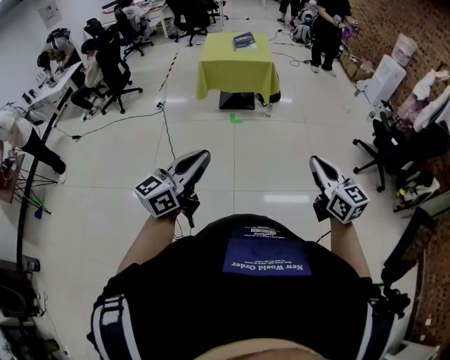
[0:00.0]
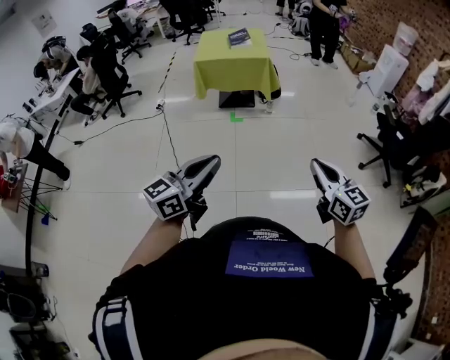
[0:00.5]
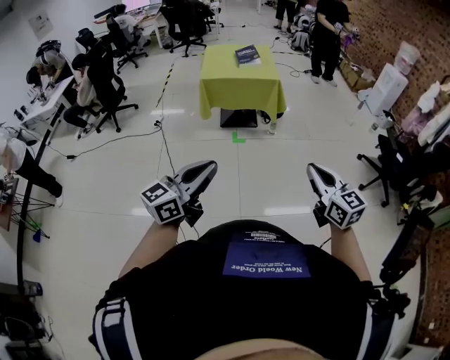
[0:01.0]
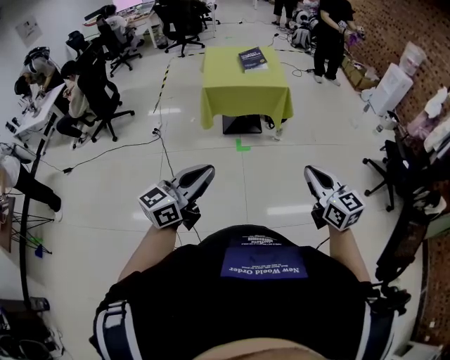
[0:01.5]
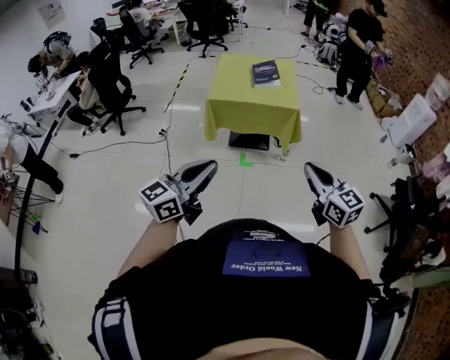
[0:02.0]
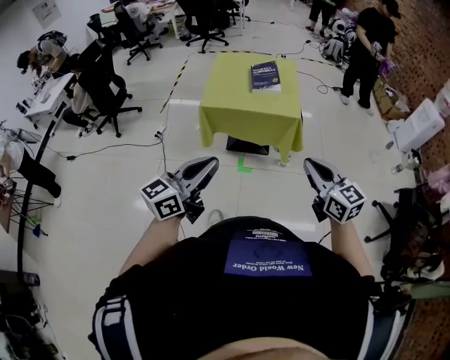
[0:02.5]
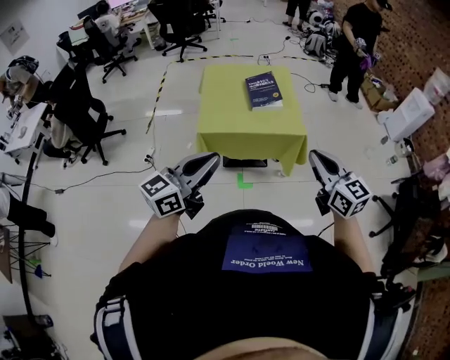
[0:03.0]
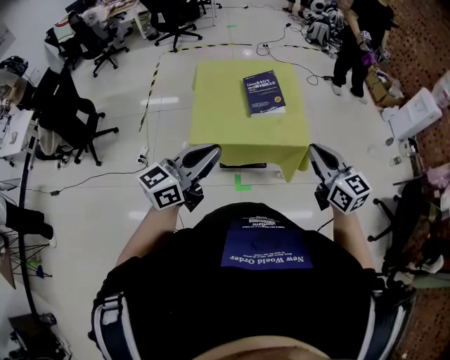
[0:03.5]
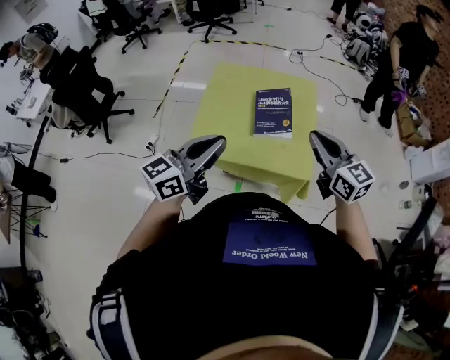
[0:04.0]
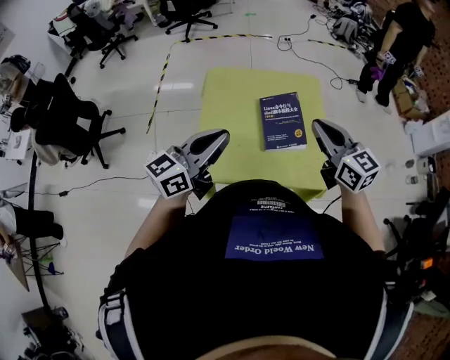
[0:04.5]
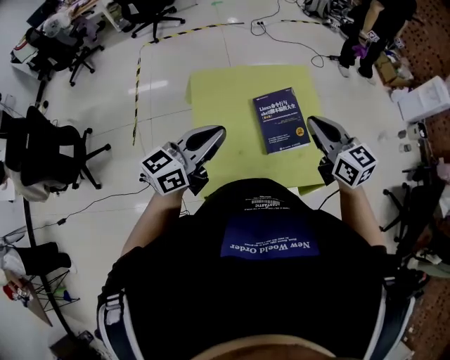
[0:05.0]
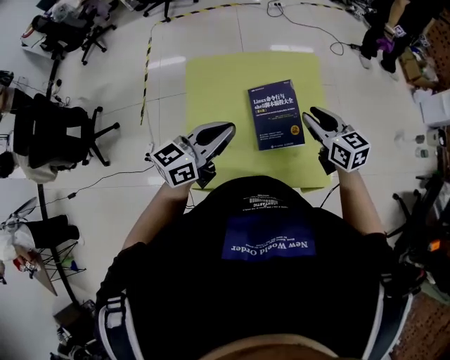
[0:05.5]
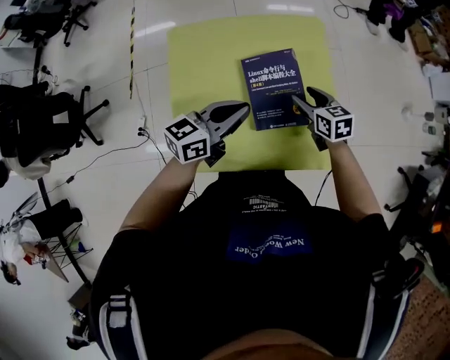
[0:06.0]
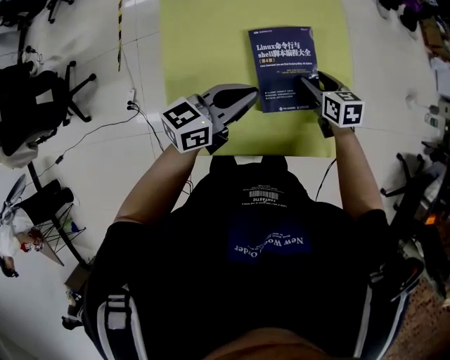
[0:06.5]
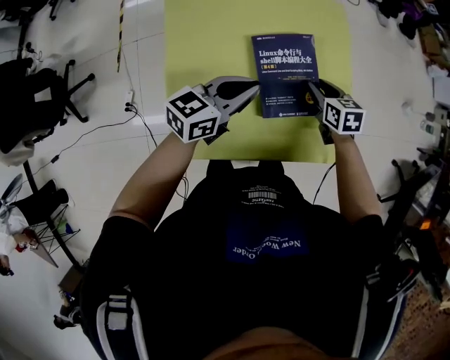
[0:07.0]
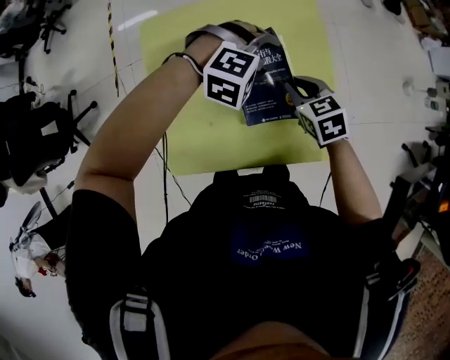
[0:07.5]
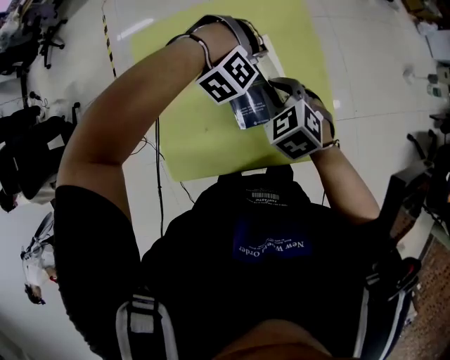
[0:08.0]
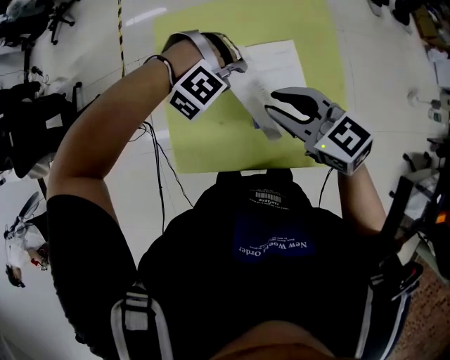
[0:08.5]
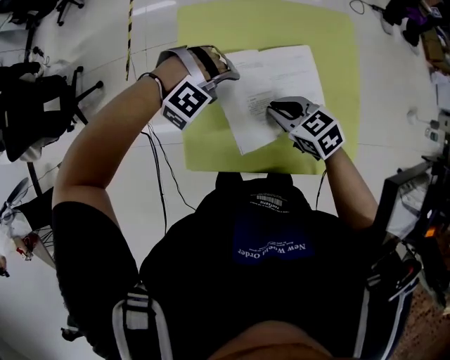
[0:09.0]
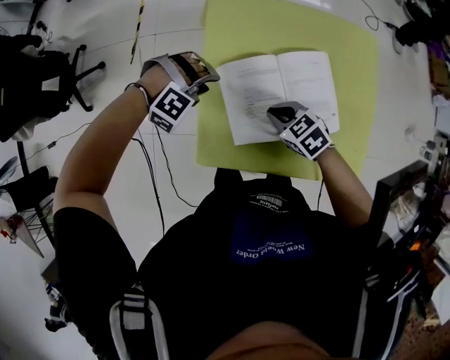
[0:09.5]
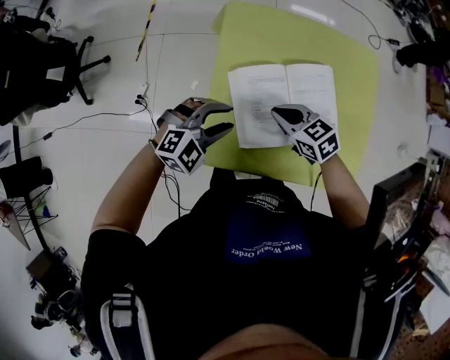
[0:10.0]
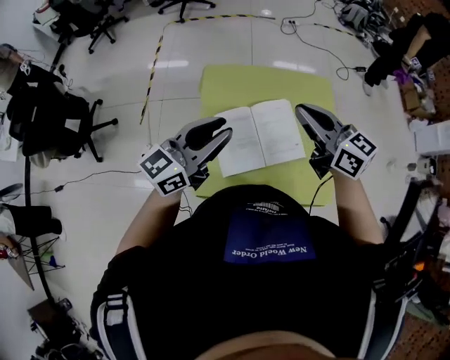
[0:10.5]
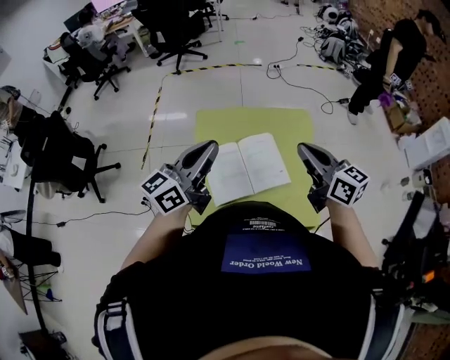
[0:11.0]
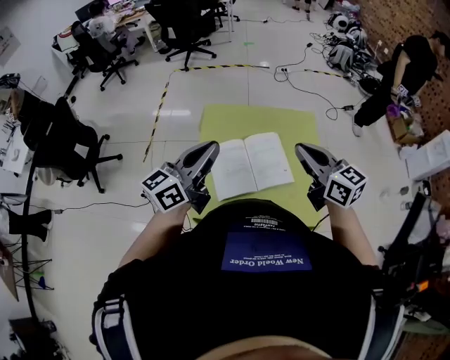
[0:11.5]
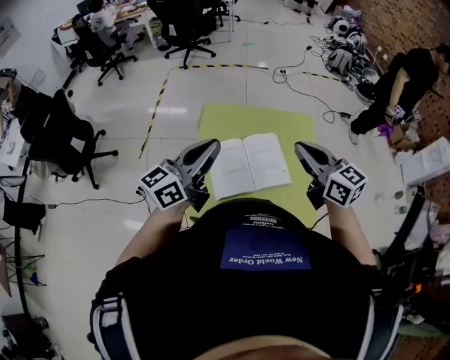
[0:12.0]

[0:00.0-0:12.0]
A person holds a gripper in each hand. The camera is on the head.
0:00.0 to 0:02.0: The pair of grippers is taken forward, approximately 50 cm.
0:02.0 to 0:04.0: The pair of grippers is taken forward, roughly 60 cm.
0:04.0 to 0:06.0: The right gripper heads downward and forward, covering roughly 40 cm, points its fingers about 30 degrees further downward, and opens up, while the left gripper moves forward and downward, approximately 35 cm, and changes its angle by about 30 degrees.
0:06.0 to 0:08.0: The right gripper changes place by approximately 5 cm, swivels roughly 30 degrees, and closes its fingers. The left gripper moves downward, some 15 cm, rolls clockwise, seen from behind, by approximately 110 degrees, and opens up.
0:08.0 to 0:10.0: The right gripper goes upward and returns, roughly 10 cm each way, and turns by roughly 30 degrees. The left gripper changes place by some 30 cm, twists approximately 80 degrees counterclockwise, seen from behind, and closes.
0:10.0 to 0:12.0: The left gripper moves upward, some 30 cm, points its fingers some 50 degrees further upward, and closes. Meanwhile the right gripper goes some 35 cm upward and to the right, and points its fingers some 30 degrees further upward.

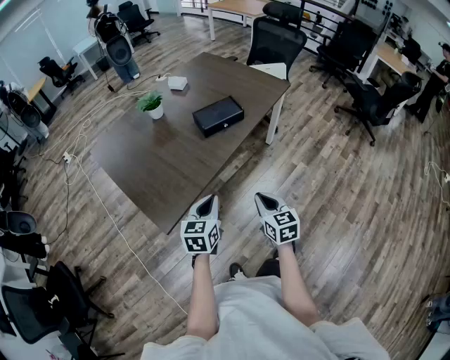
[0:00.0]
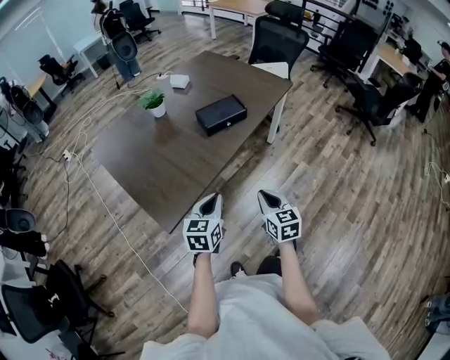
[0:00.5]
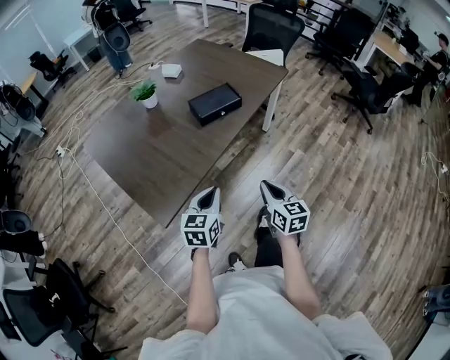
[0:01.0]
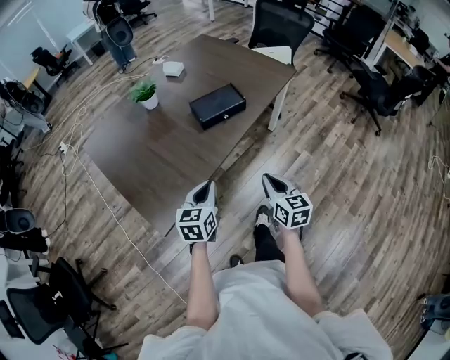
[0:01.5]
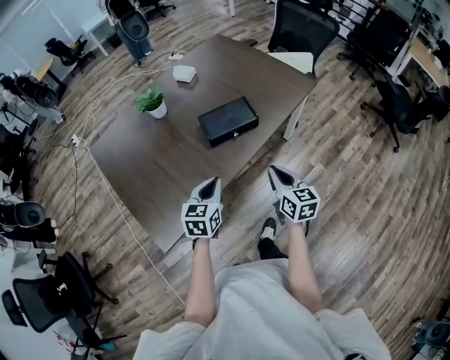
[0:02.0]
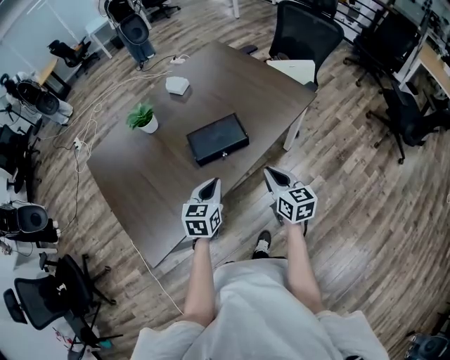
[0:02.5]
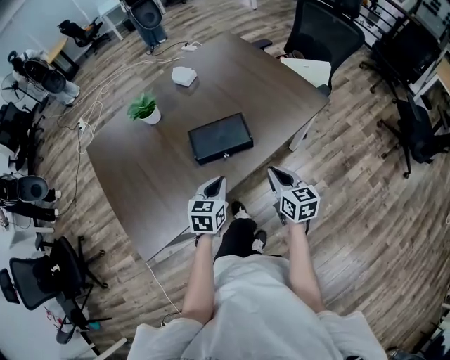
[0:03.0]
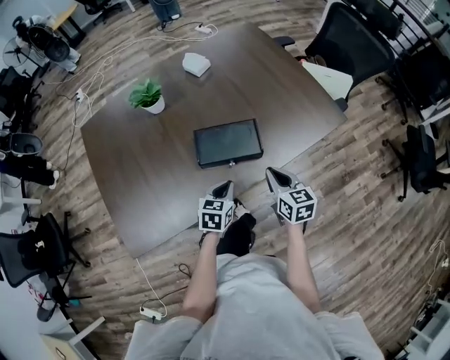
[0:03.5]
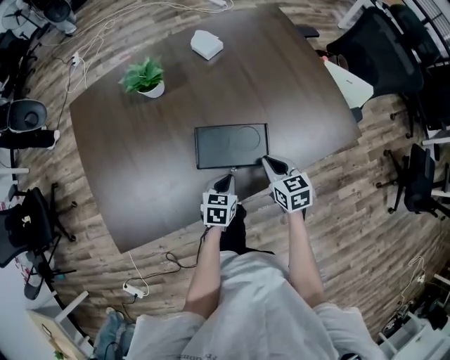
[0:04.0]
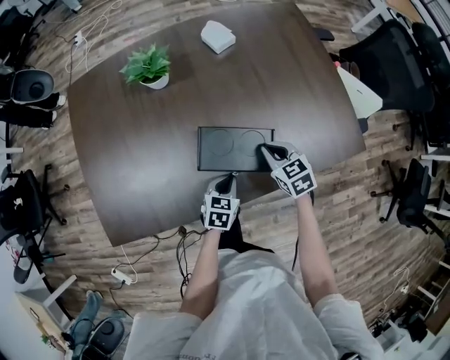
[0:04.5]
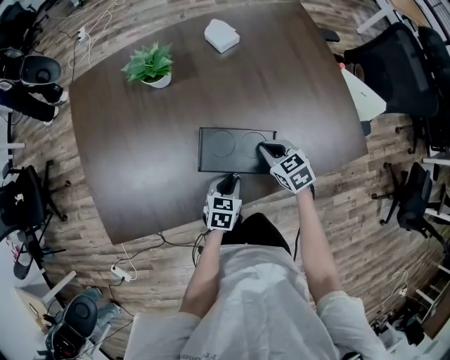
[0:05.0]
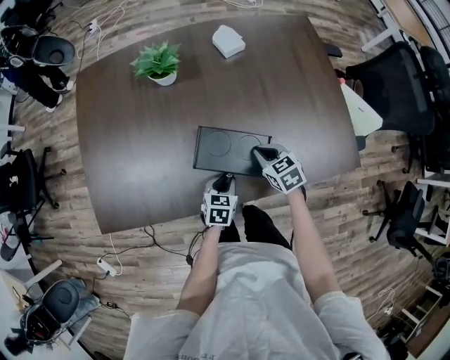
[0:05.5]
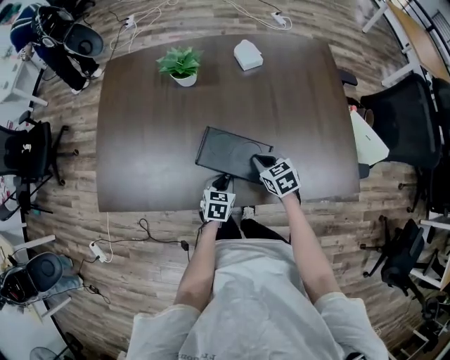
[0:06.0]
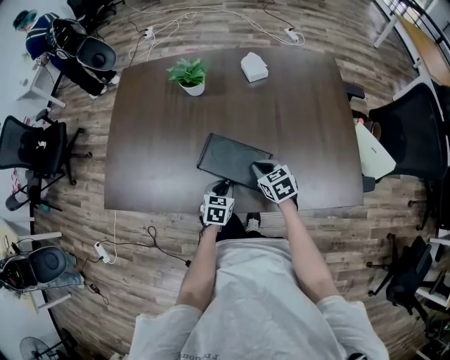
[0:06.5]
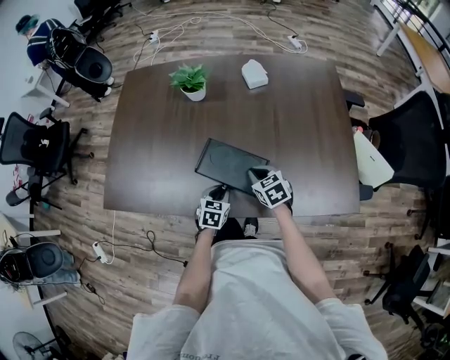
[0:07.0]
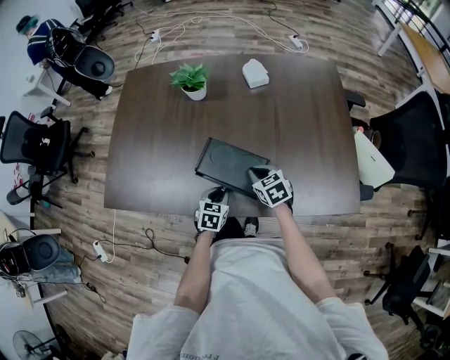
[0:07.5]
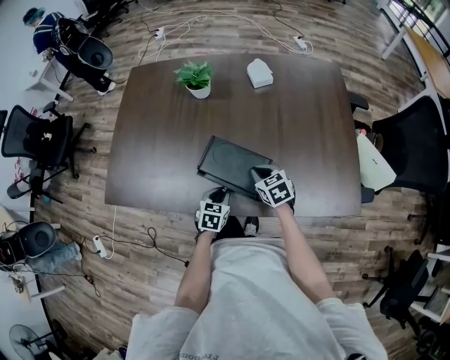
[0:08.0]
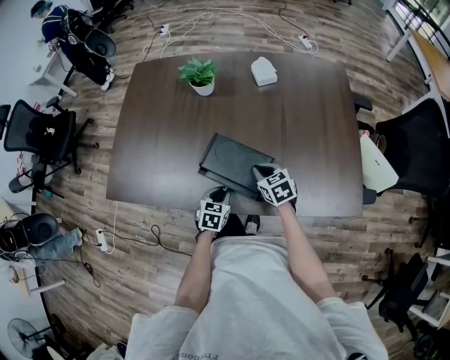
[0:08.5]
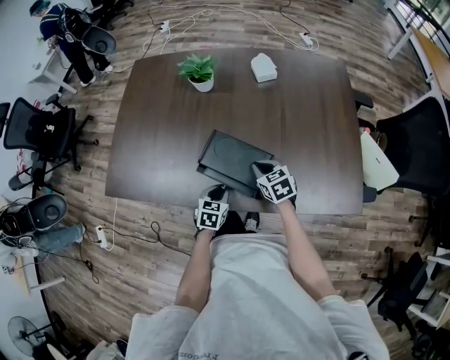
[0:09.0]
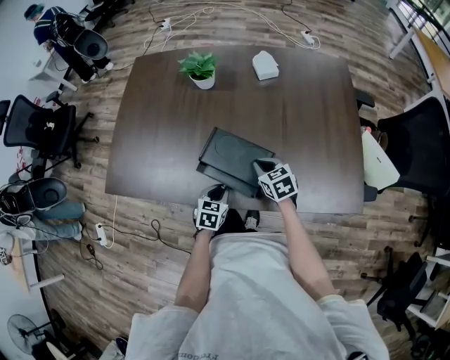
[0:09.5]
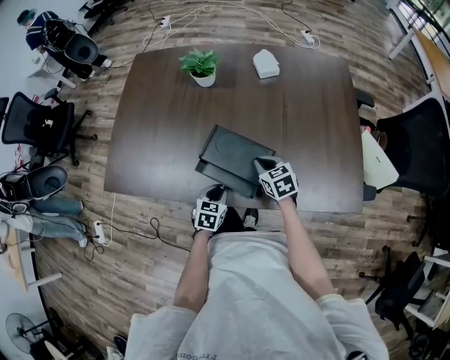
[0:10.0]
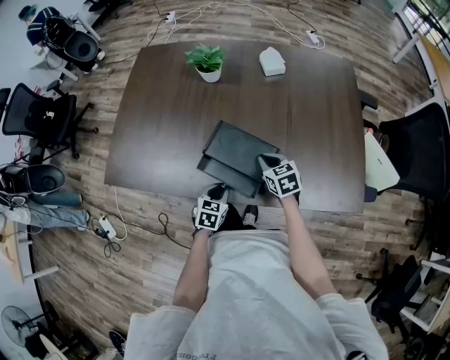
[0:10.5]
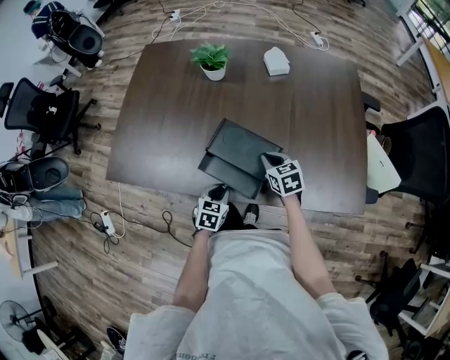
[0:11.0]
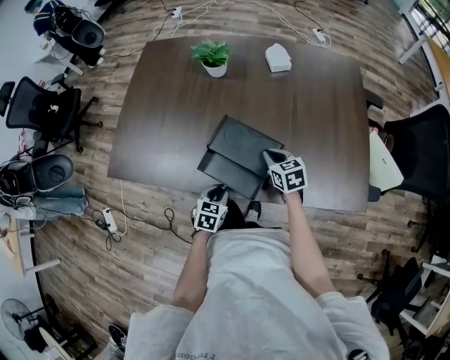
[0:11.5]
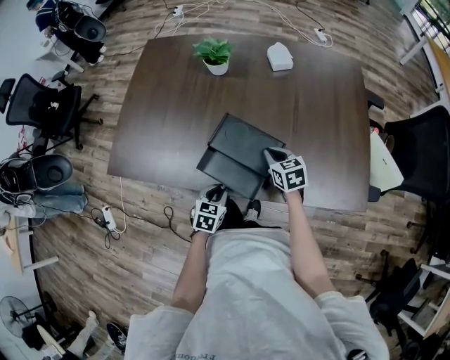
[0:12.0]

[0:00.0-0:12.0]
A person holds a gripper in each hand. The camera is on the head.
0:00.0 to 0:02.0: Both grippers move forward, some 20 cm.
0:02.0 to 0:04.0: The right gripper travels forward by some 30 cm, and turns by approximately 40 degrees, while the left gripper is displaced forward, downward and to the right by about 30 cm, and rotates roughly 30 degrees.
0:04.0 to 0:06.0: The right gripper changes place by roughly 10 cm, and swivels about 30 degrees.
0:06.0 to 0:10.0: The grippers move only a little.
0:10.0 to 0:12.0: The grippers make only small movements.

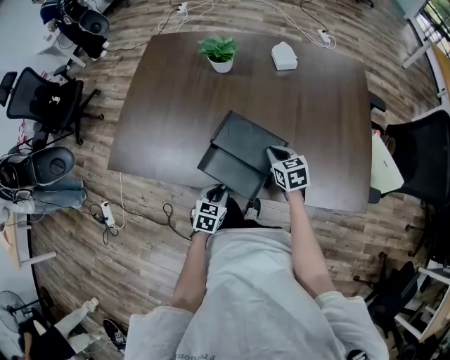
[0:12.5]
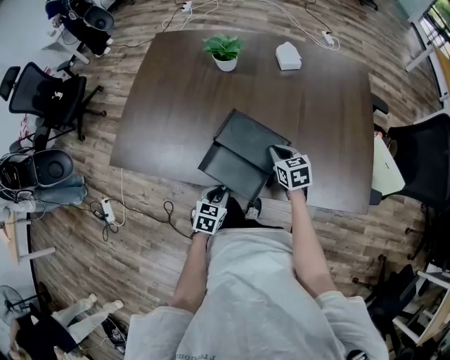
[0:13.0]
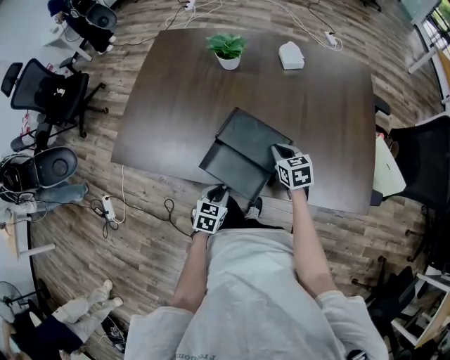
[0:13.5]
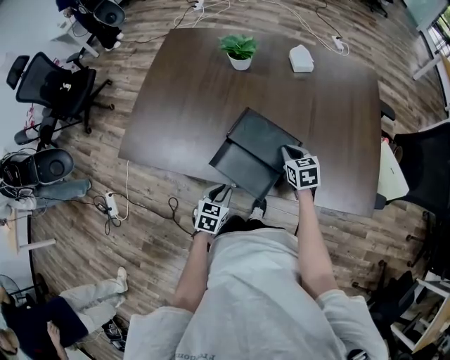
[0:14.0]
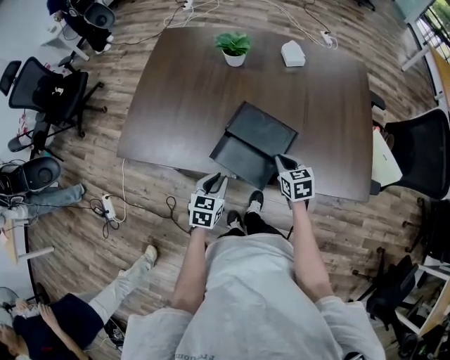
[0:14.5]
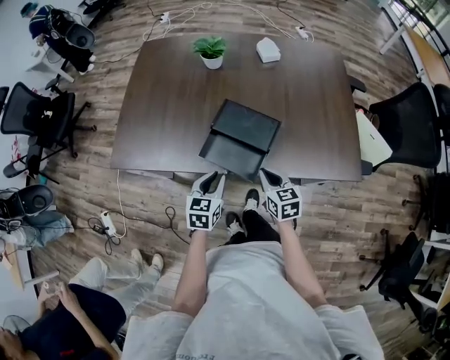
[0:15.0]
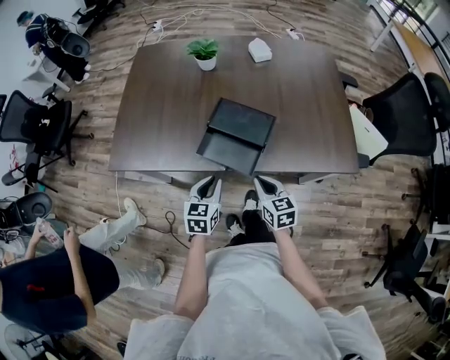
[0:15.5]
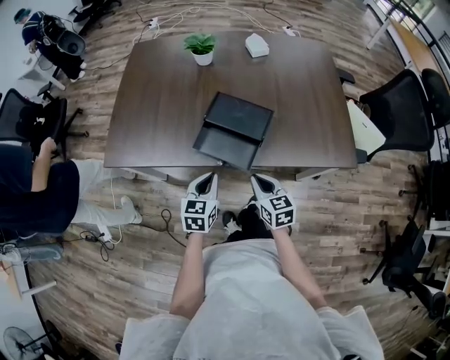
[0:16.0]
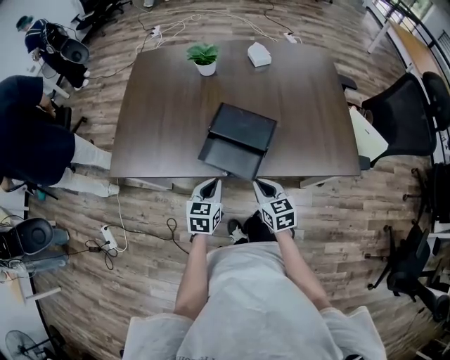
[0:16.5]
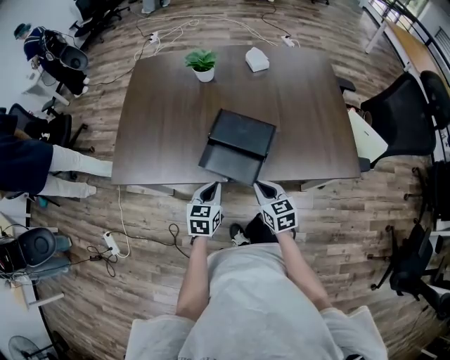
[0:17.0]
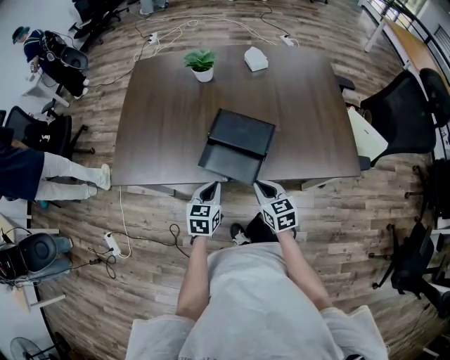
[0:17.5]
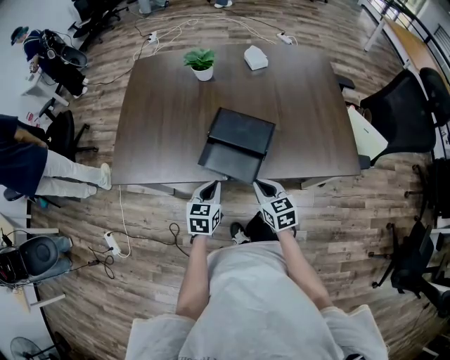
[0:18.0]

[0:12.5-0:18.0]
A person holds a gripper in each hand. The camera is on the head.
0:12.5 to 0:14.5: The left gripper moves upward and to the left, about 10 cm, while the right gripper travels backward by about 10 cm.
0:14.5 to 0:16.0: The right gripper moves backward, some 15 cm; the left gripper moves backward, approximately 5 cm.
0:16.0 to 0:18.0: The grippers move only a little.
